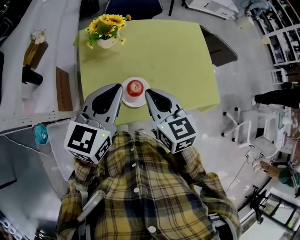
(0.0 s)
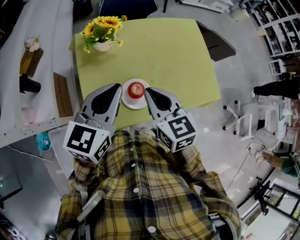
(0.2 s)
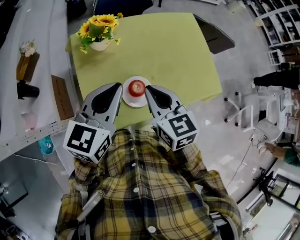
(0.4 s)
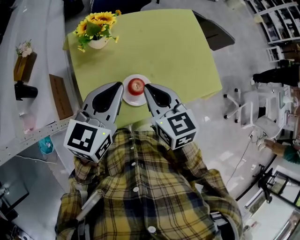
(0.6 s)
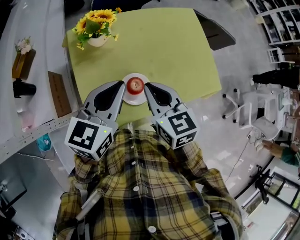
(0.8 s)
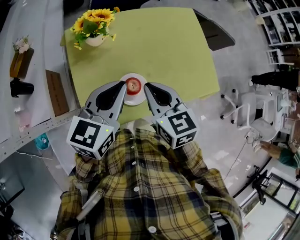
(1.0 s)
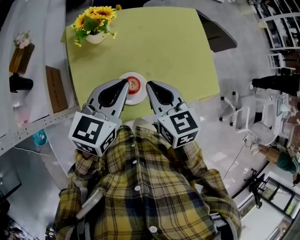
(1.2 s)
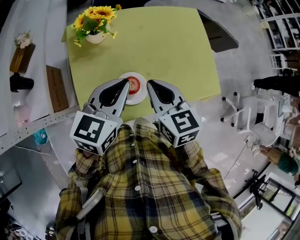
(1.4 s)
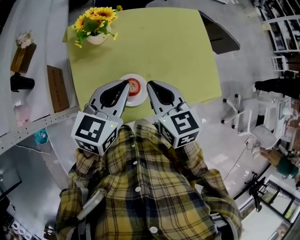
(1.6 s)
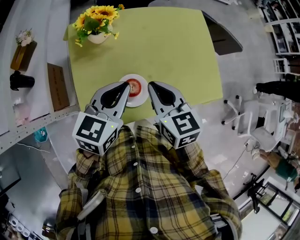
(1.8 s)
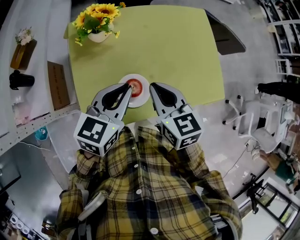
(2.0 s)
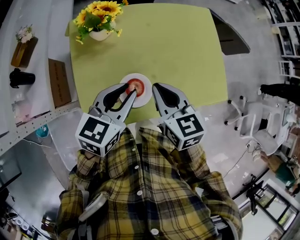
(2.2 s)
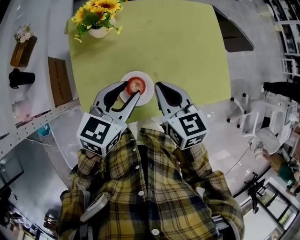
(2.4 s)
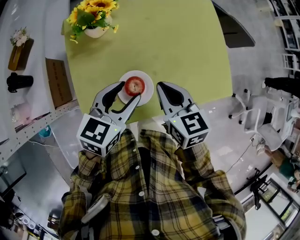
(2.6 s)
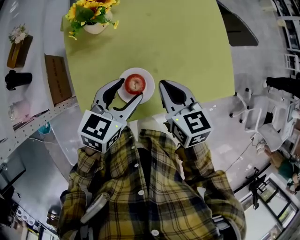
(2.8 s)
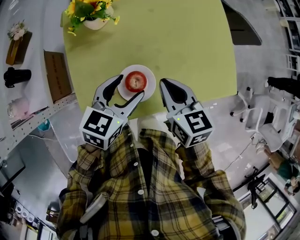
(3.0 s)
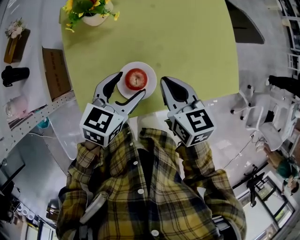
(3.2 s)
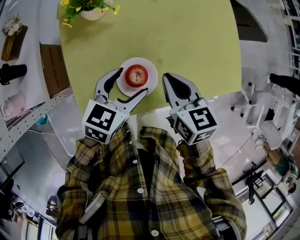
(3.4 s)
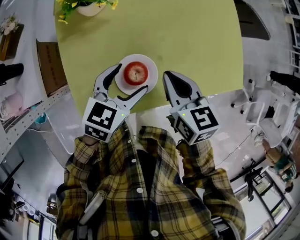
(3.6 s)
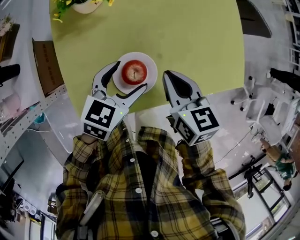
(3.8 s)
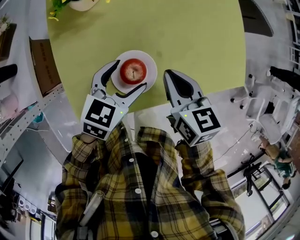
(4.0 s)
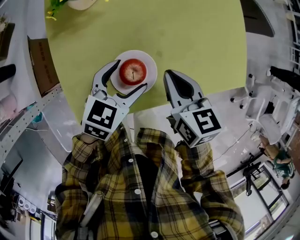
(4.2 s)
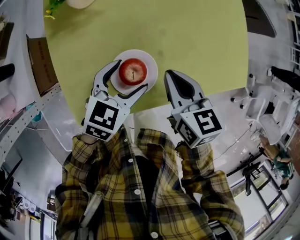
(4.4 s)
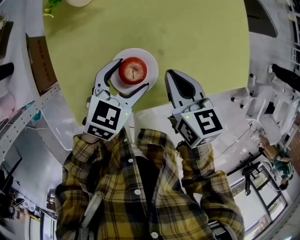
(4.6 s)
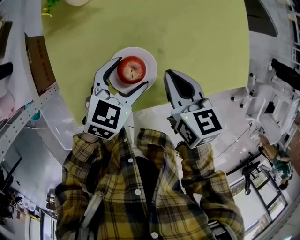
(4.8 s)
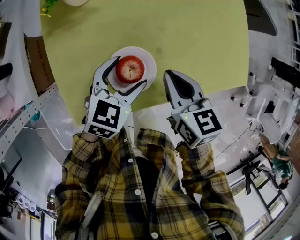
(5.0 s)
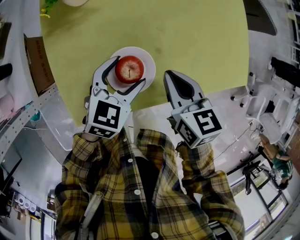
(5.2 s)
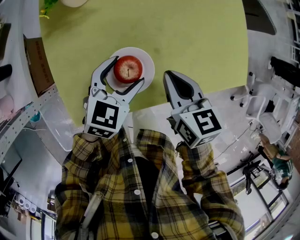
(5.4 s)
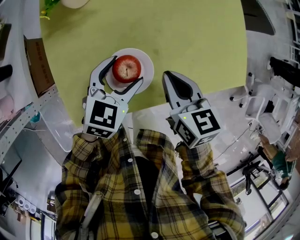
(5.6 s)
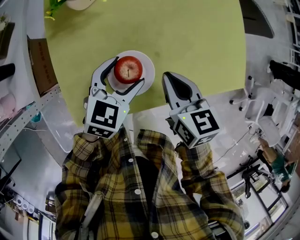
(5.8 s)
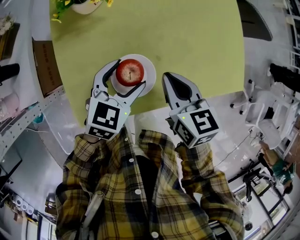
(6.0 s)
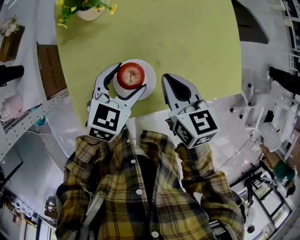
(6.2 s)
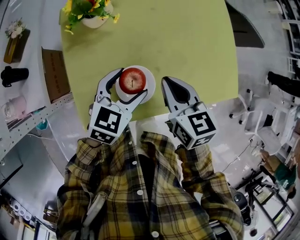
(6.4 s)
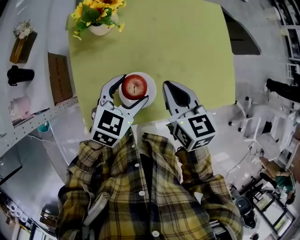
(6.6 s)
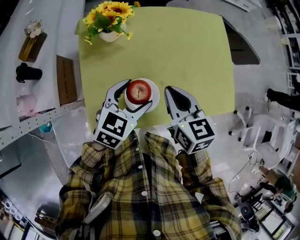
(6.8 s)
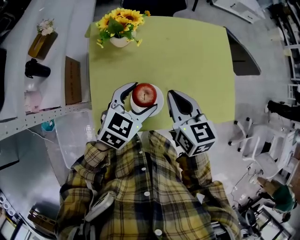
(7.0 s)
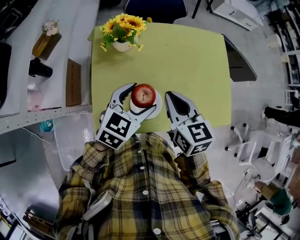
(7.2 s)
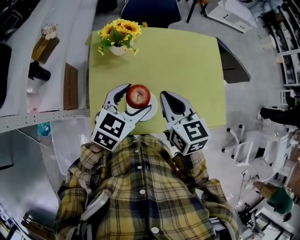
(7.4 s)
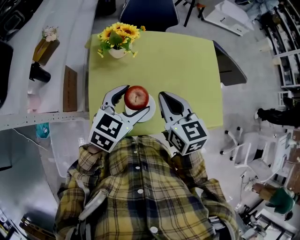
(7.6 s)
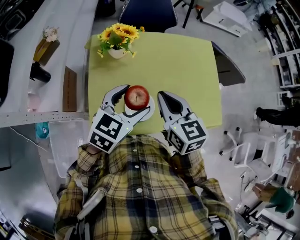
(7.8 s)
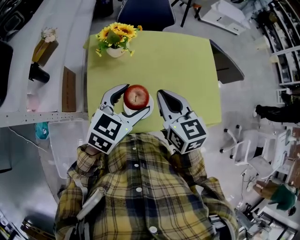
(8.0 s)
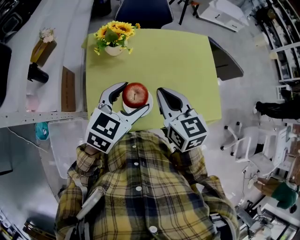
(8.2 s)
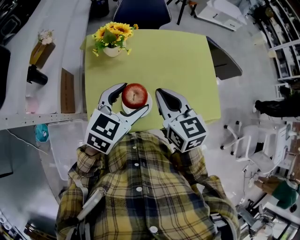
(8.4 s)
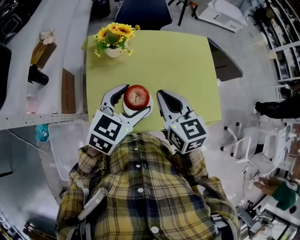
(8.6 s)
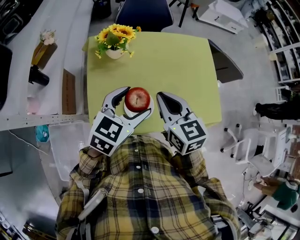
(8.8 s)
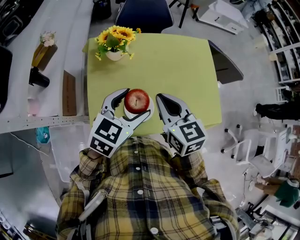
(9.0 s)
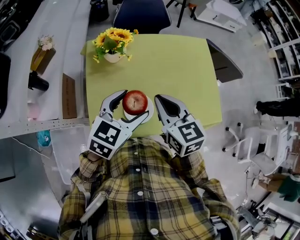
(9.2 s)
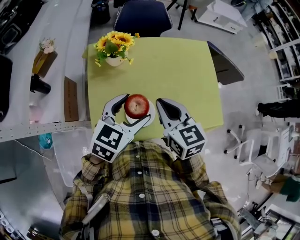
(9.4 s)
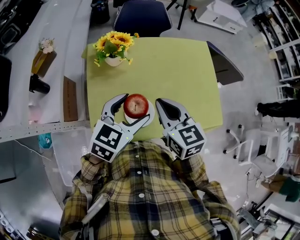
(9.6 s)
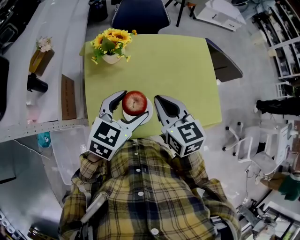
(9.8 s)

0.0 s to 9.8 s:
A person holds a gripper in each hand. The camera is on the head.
0.0 to 1.4 s: The right gripper moves roughly 5 cm, while the left gripper heads downward, covering about 5 cm.
1.4 to 2.8 s: The two grippers go about 10 cm downward. The left gripper opens.
2.8 to 4.2 s: The right gripper goes some 5 cm downward. The left gripper goes about 10 cm downward.
4.2 to 5.6 s: There are only small adjustments of the grippers.
5.6 to 7.0 s: The grippers both shift upward by some 15 cm.
7.0 to 8.4 s: Both grippers travel together upward, roughly 5 cm.
8.4 to 9.8 s: There are only small adjustments of the grippers.

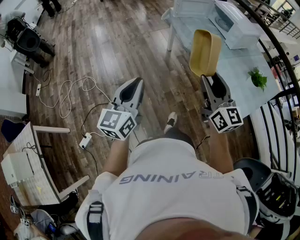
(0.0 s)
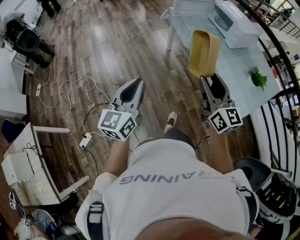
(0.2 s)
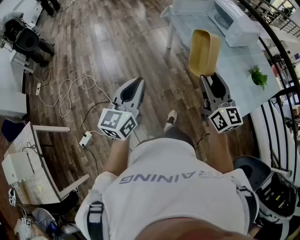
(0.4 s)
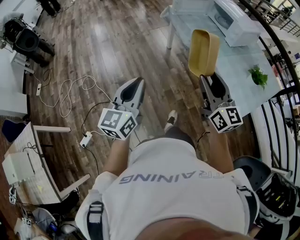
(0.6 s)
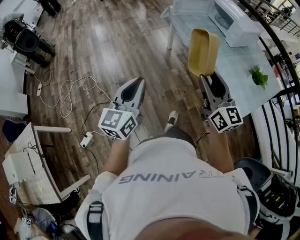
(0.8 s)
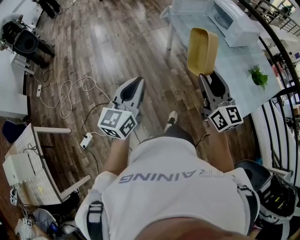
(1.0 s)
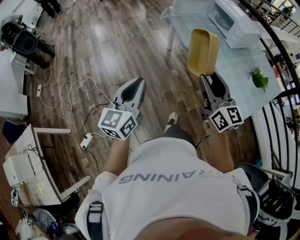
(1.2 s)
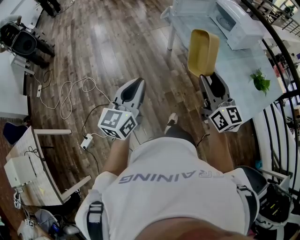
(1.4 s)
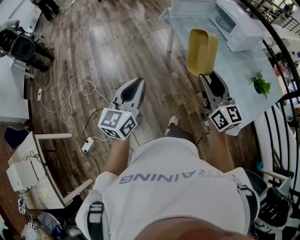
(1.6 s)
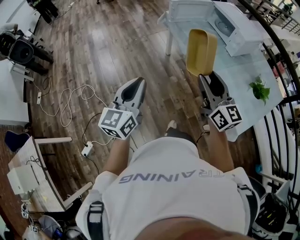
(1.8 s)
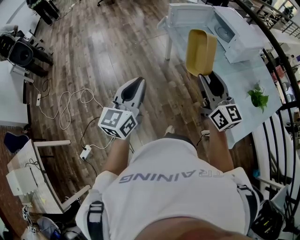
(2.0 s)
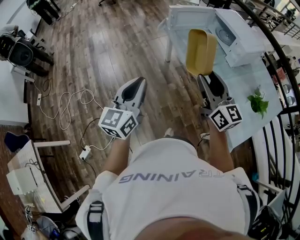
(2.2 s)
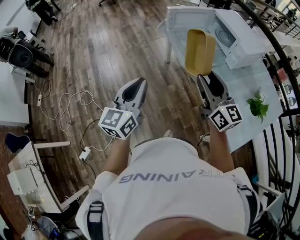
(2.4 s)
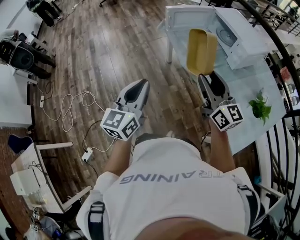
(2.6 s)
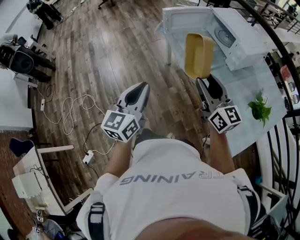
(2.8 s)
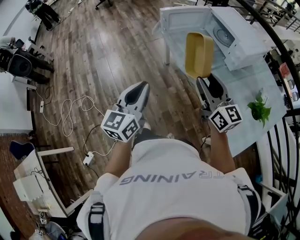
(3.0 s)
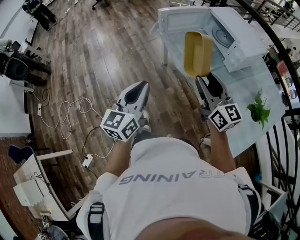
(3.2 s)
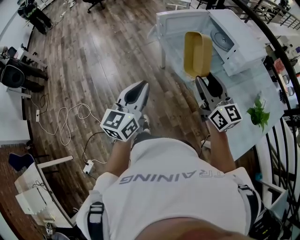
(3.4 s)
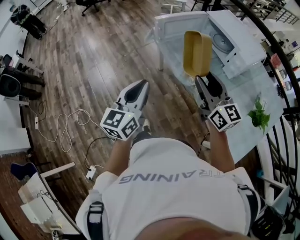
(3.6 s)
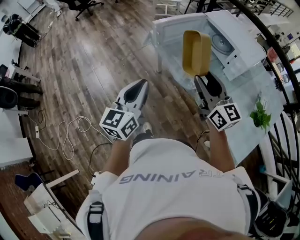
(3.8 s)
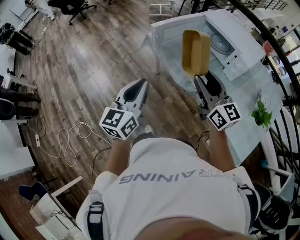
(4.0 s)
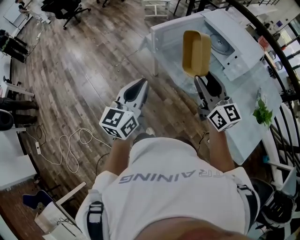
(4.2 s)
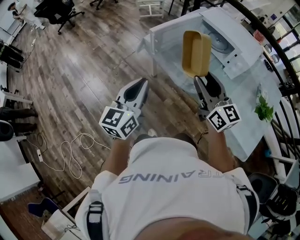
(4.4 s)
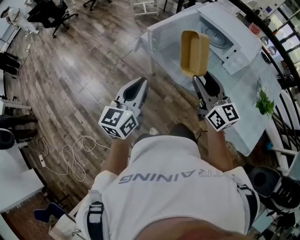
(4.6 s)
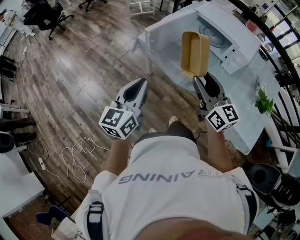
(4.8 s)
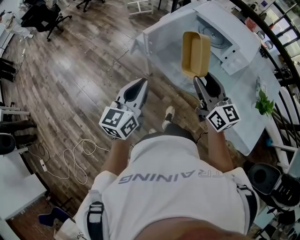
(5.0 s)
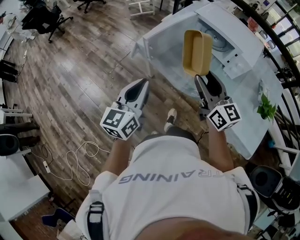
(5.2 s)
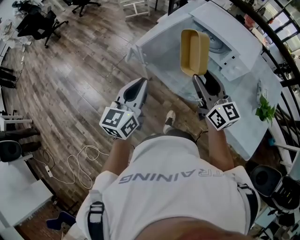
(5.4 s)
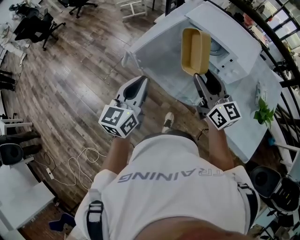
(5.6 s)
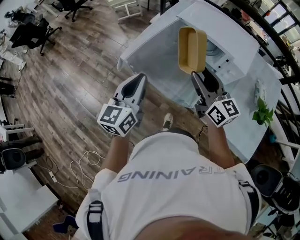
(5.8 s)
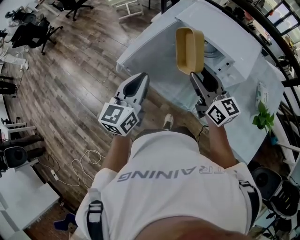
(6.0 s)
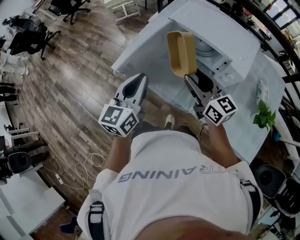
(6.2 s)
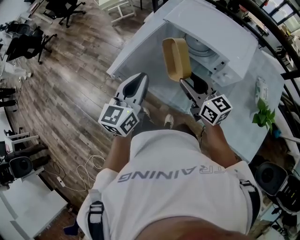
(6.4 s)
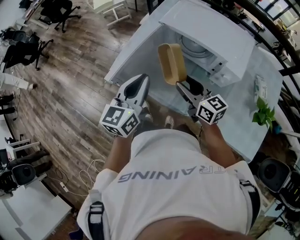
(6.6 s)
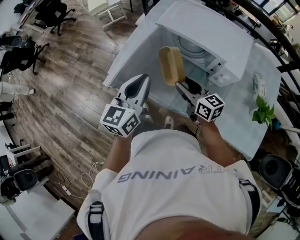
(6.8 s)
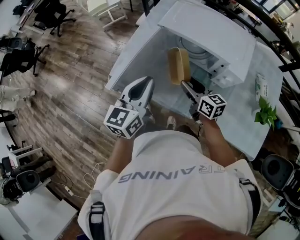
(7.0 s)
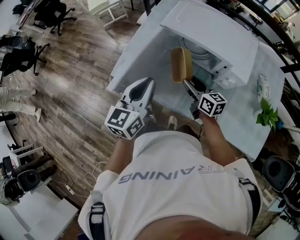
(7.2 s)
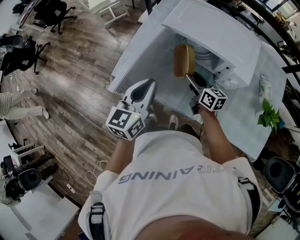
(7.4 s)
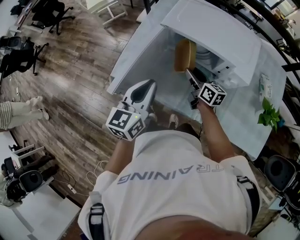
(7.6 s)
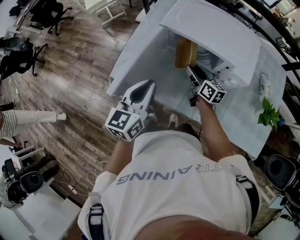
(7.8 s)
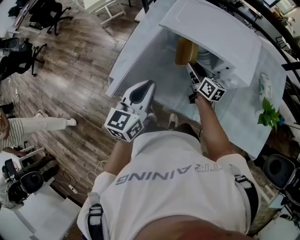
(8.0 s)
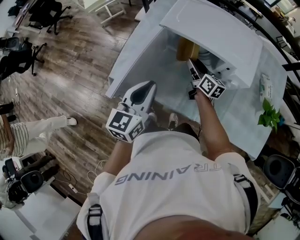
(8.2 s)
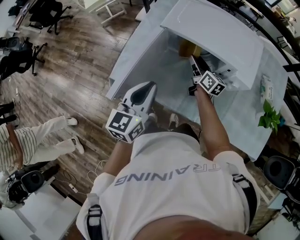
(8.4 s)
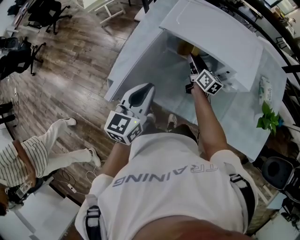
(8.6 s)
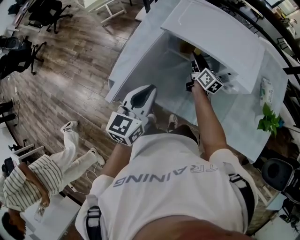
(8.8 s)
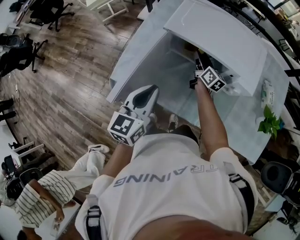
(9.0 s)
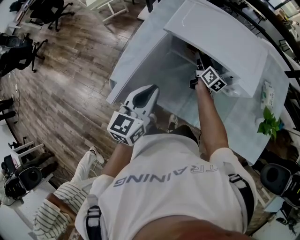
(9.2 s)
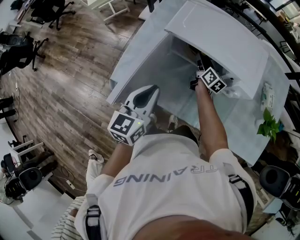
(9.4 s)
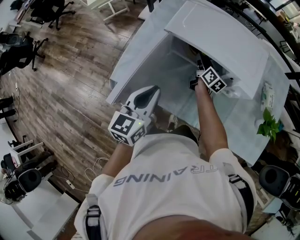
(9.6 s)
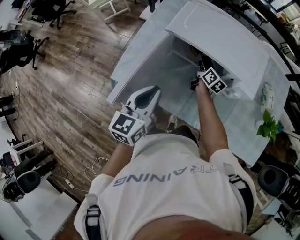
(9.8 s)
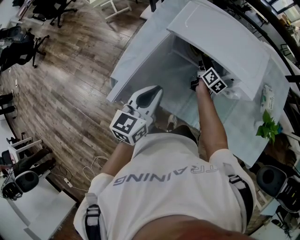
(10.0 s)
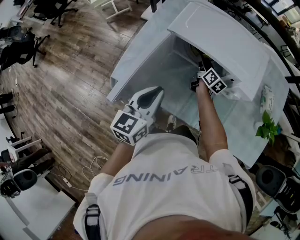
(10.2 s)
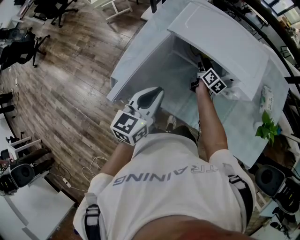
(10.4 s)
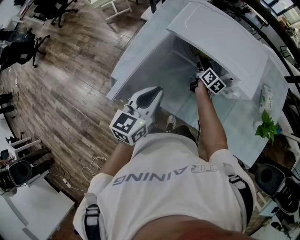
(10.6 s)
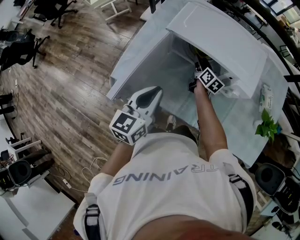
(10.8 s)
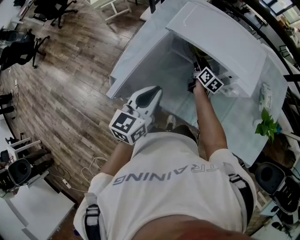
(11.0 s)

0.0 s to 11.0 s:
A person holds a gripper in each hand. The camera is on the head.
0.0 to 1.6 s: Both grippers move forward, some 10 cm.
1.6 to 3.2 s: The right gripper goes about 20 cm forward. Meanwhile the left gripper travels forward and to the right by roughly 25 cm.
3.2 to 4.8 s: The grippers both shift forward and to the left by about 25 cm. The right gripper swivels some 20 degrees, while the left gripper swivels roughly 20 degrees.
4.8 to 6.2 s: Both grippers travel together forward and to the right, roughly 25 cm.
6.2 to 7.8 s: The right gripper goes about 20 cm downward and forward, and turns by roughly 30 degrees. The left gripper shifts roughly 10 cm forward.
7.8 to 9.4 s: The right gripper travels forward by roughly 10 cm.
9.4 to 11.0 s: There are only small adjustments of the grippers.

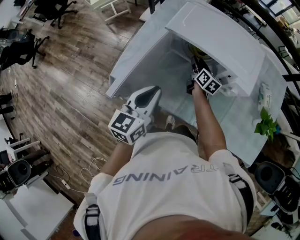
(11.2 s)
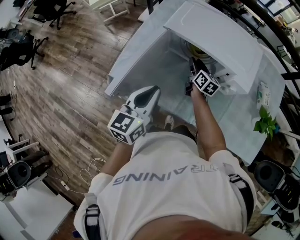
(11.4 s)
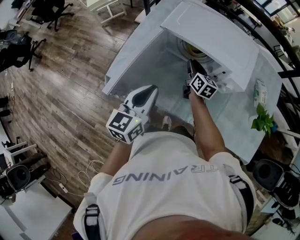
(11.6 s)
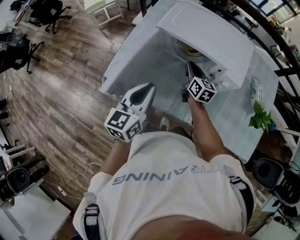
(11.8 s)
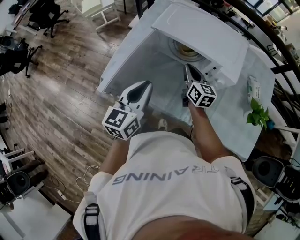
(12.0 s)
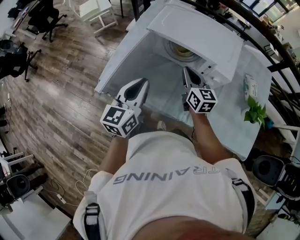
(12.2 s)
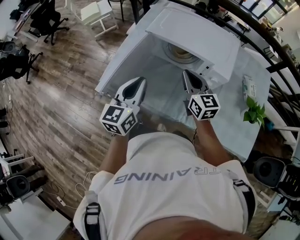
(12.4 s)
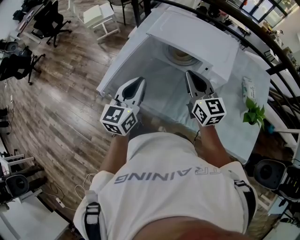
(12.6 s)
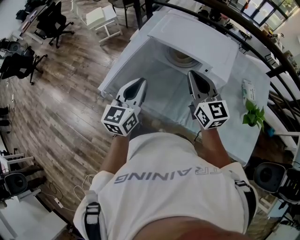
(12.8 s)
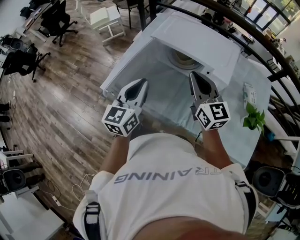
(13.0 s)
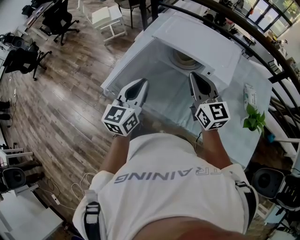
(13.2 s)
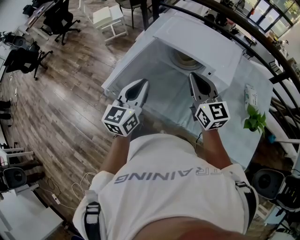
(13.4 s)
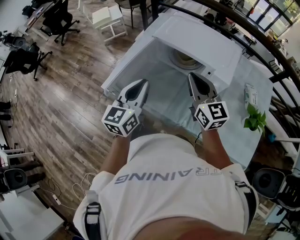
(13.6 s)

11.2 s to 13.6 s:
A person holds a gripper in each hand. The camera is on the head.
11.2 to 12.4 s: The right gripper is displaced upward and backward by some 25 cm, rotates some 40 degrees, and closes.
12.4 to 13.6 s: The right gripper is displaced upward by roughly 10 cm.
